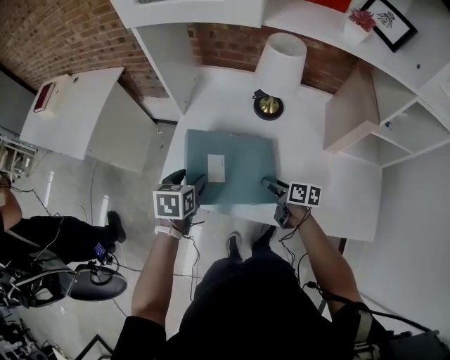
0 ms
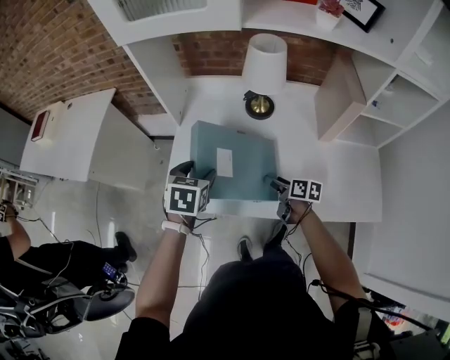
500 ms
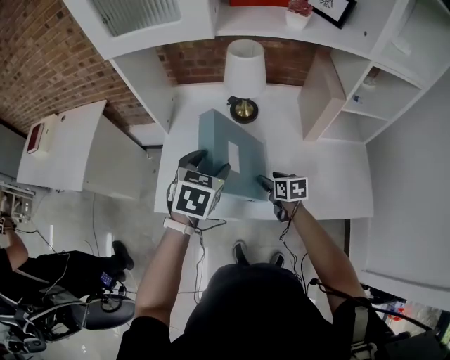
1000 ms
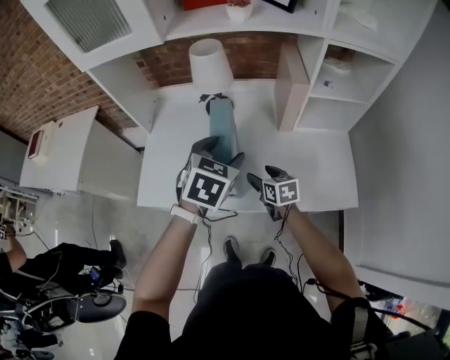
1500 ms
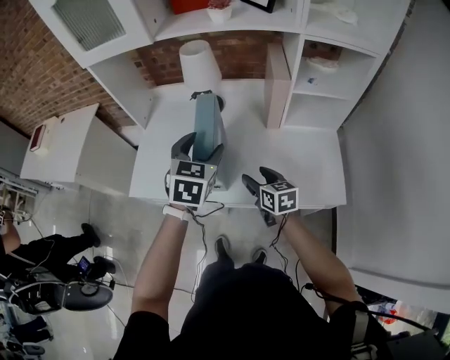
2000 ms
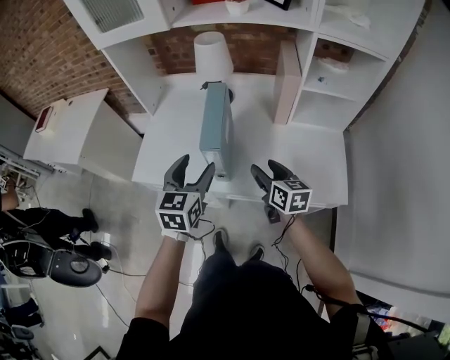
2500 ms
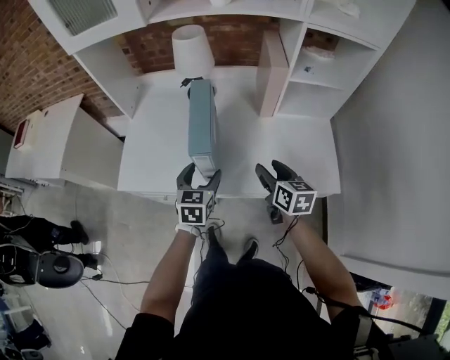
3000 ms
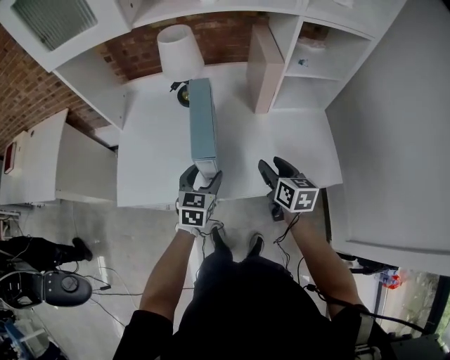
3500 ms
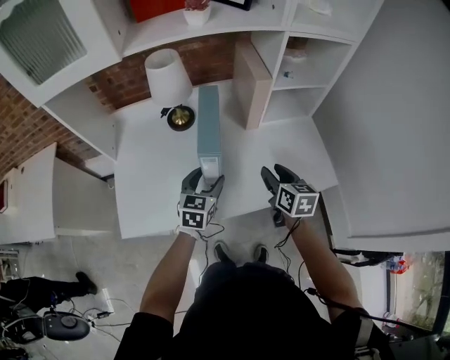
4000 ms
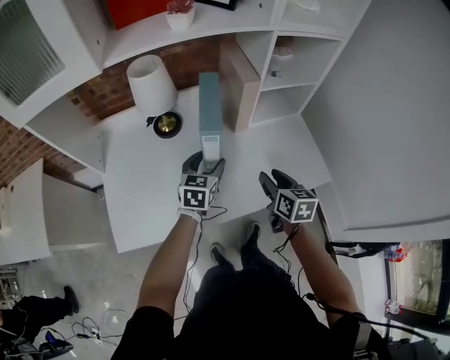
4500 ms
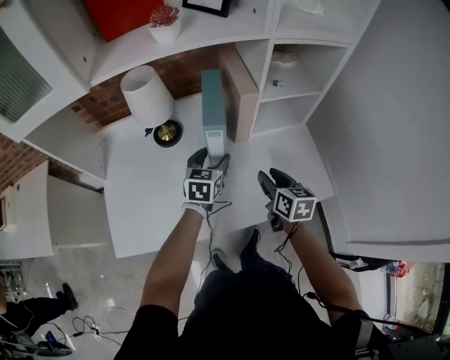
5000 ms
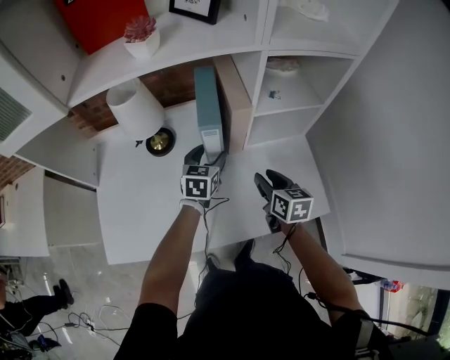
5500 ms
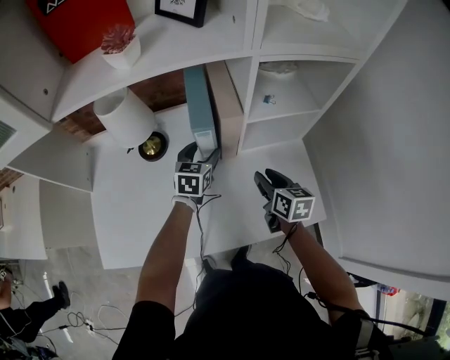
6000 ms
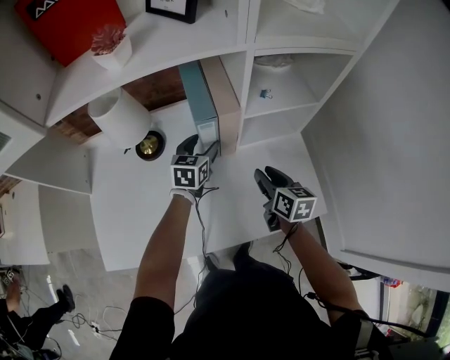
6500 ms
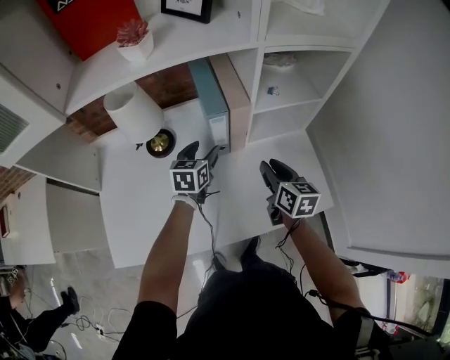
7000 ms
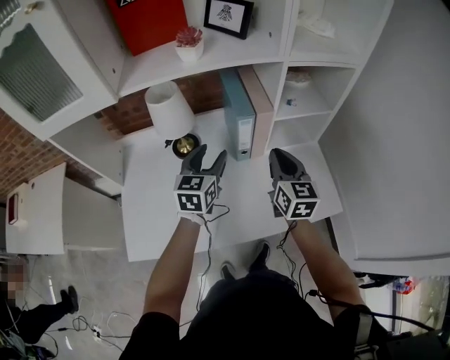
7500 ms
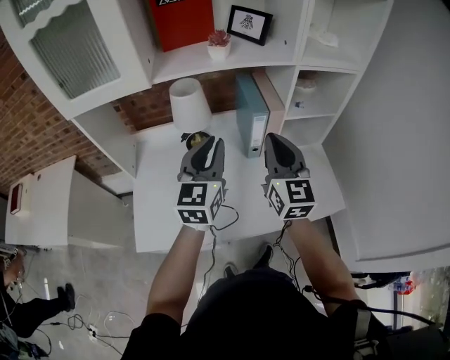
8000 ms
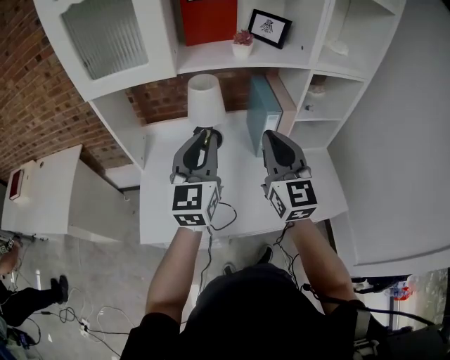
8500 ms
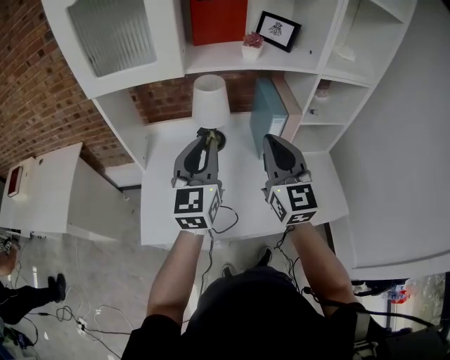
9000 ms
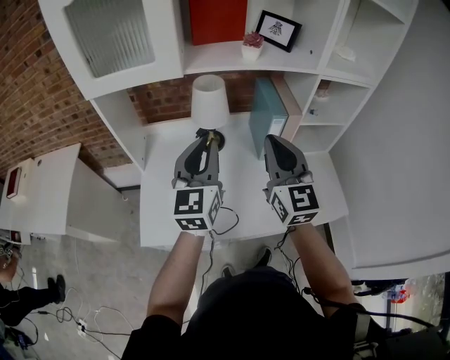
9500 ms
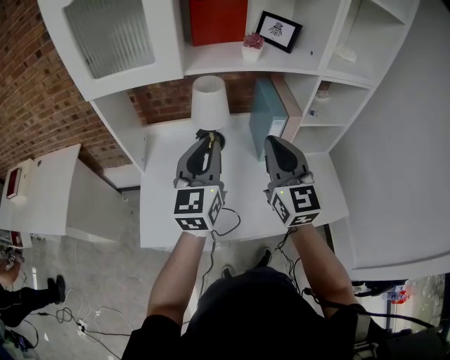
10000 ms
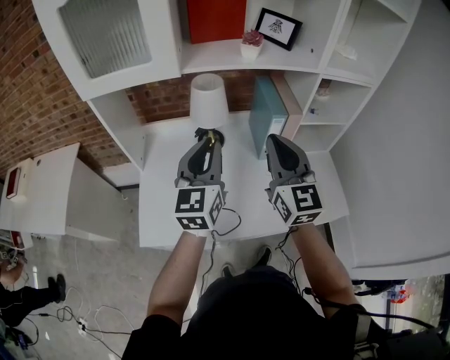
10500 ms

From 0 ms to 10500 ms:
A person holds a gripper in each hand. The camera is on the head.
From 0 ms to 2000 ms: The right gripper travels to the right, backward and upward by approximately 20 cm, and swivels about 30 degrees. The left gripper shifts approximately 35 cm to the right and upward, and turns by some 30 degrees.
From 2000 ms to 4000 ms: The right gripper ends up about 5 cm from where it was, and rotates some 30 degrees. The left gripper shifts approximately 15 cm downward, and rotates some 20 degrees.
From 4000 ms to 6500 ms: The right gripper moves forward and to the right, some 15 cm. The left gripper moves forward and to the right, approximately 30 cm.
From 6500 ms to 8500 ms: The left gripper is displaced upward, backward and to the left by approximately 40 cm, tips its fingers upward by some 30 degrees, and closes up. Meanwhile the right gripper shifts approximately 40 cm upward, to the left and backward, angles its fingers upward, by roughly 30 degrees, and closes up.
From 8500 ms to 10500 ms: The grippers stay close to where they were, moving slightly.

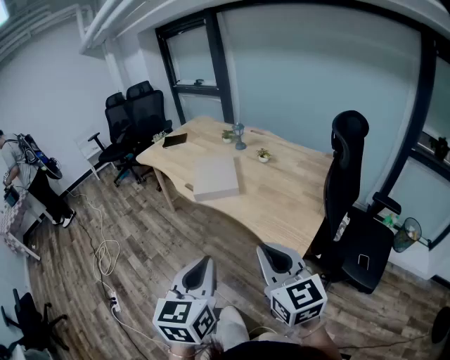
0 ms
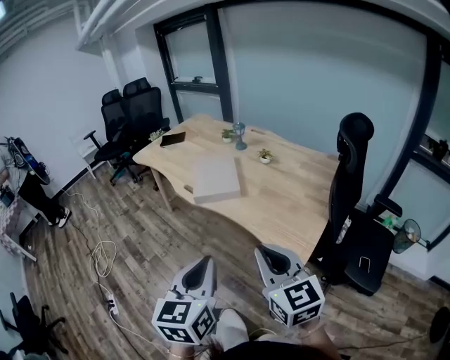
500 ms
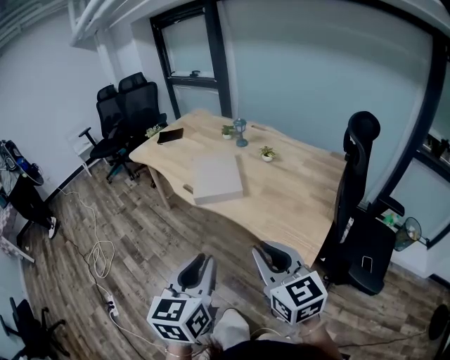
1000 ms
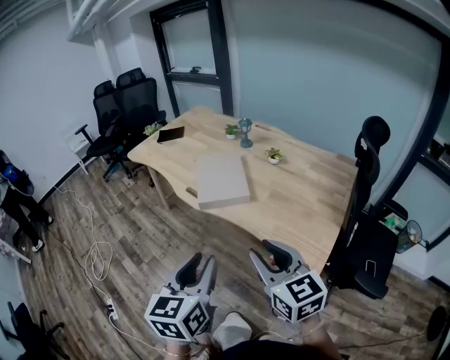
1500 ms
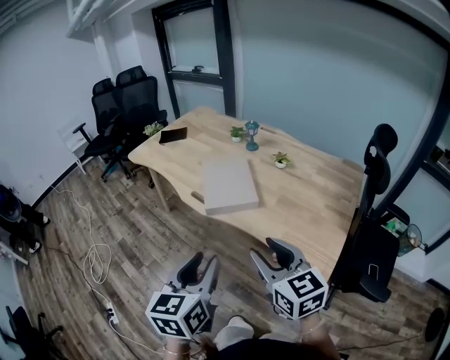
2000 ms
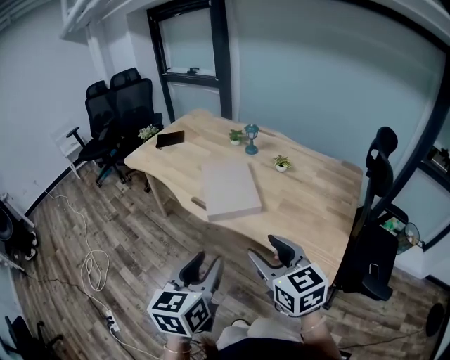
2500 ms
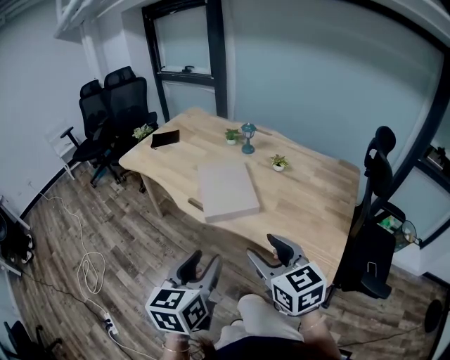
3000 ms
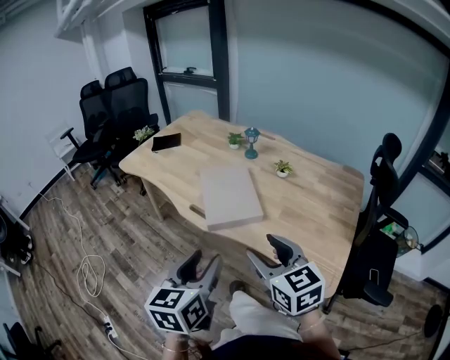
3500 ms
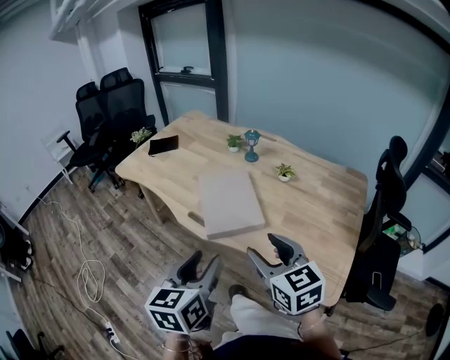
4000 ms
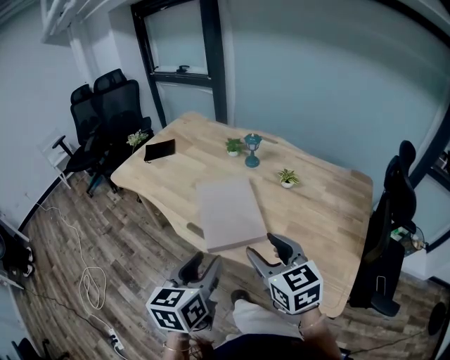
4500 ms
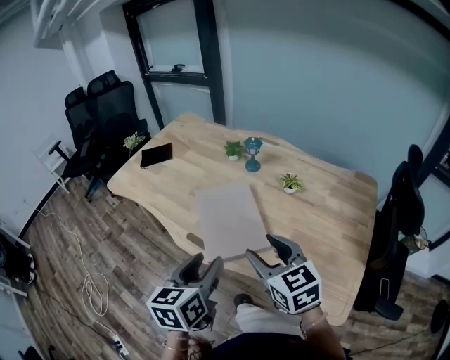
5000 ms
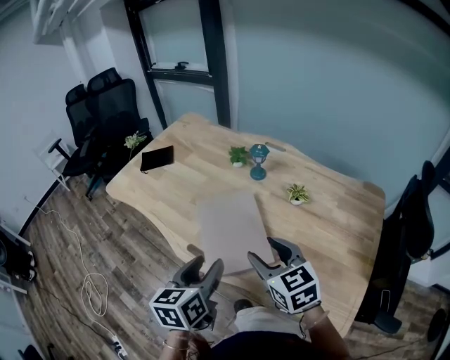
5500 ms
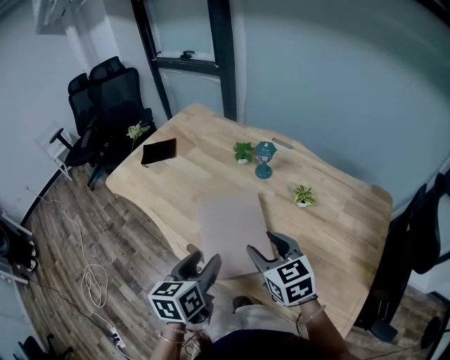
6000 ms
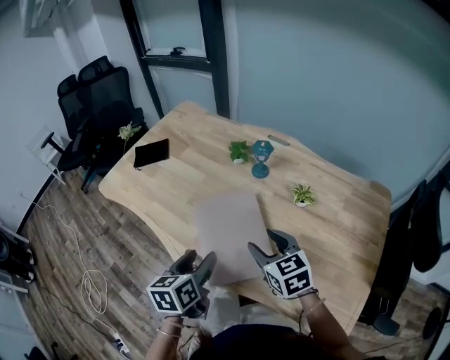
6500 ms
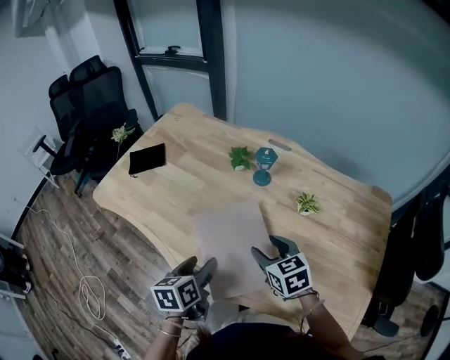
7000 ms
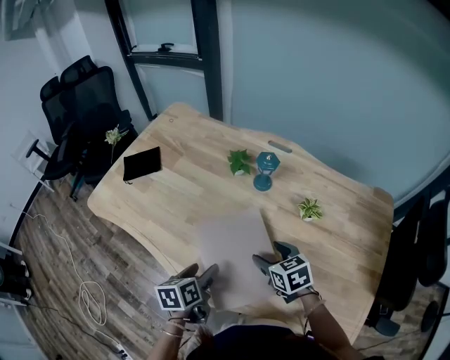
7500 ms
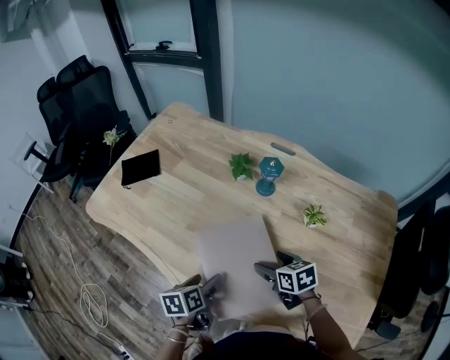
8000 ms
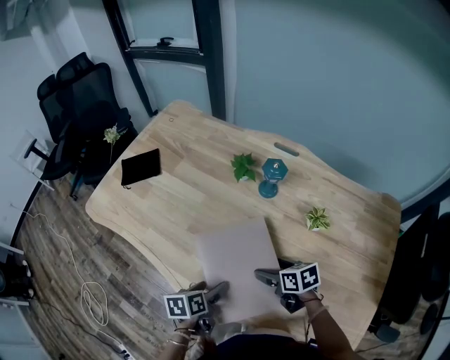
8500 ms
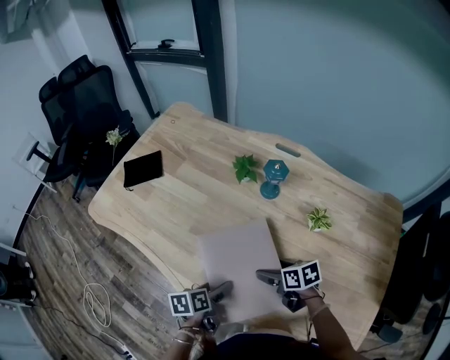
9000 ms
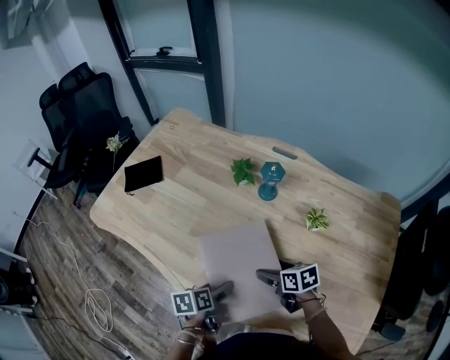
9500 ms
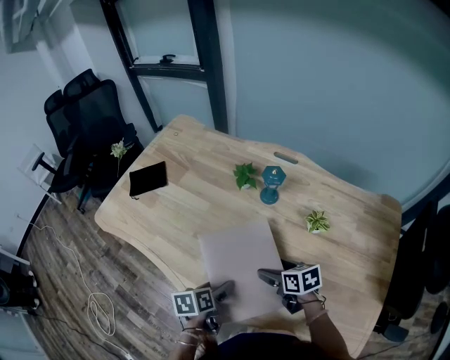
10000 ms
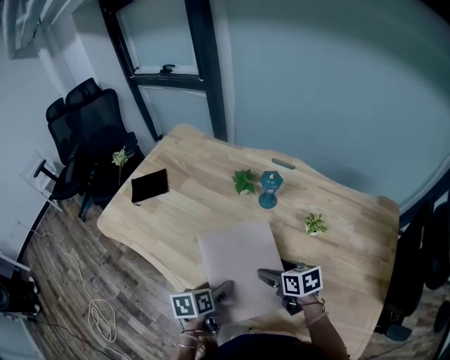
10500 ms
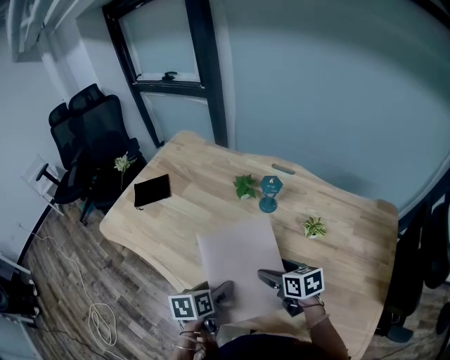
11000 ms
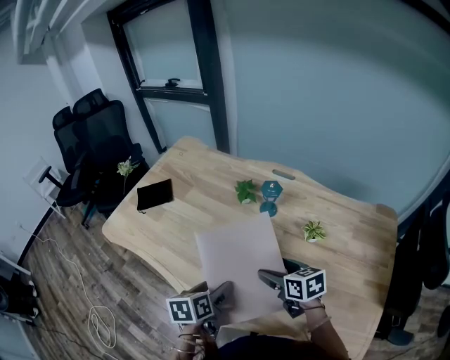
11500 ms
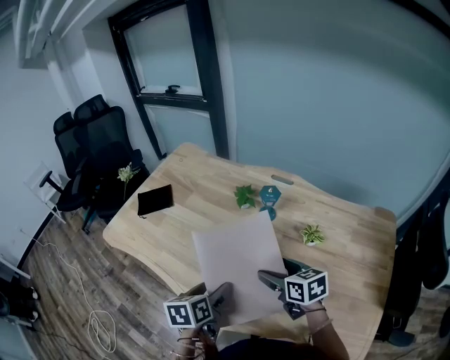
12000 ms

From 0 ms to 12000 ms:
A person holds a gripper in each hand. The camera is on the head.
From 0 ms to 2000 ms: The two grippers go approximately 20 cm forward and to the left. The right gripper opens up; the left gripper opens its fingers.
From 2000 ms to 4000 ms: Both grippers move forward, about 15 cm.
From 4000 ms to 6000 ms: Both grippers travel together forward, about 25 cm.
From 6000 ms to 8000 ms: The grippers both shift downward and forward by about 20 cm. The right gripper rotates about 30 degrees; the left gripper swivels about 30 degrees.
From 8000 ms to 10000 ms: There are only small adjustments of the grippers.
From 10000 ms to 12000 ms: The two grippers go some 10 cm upward.

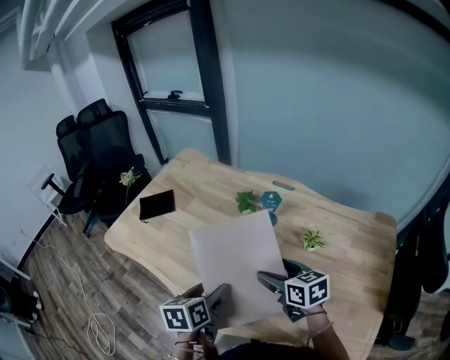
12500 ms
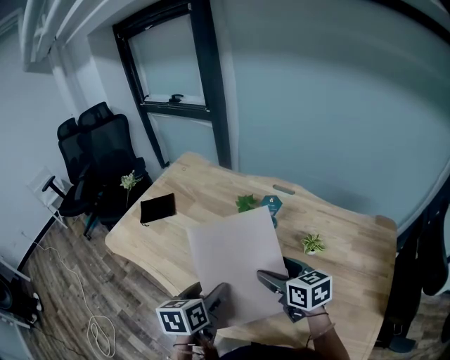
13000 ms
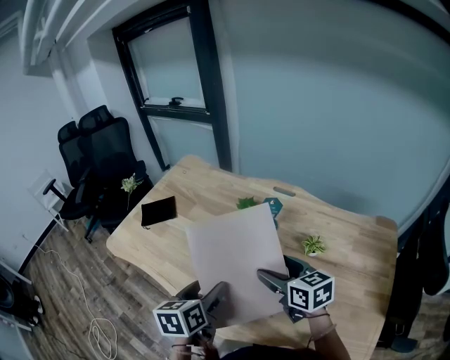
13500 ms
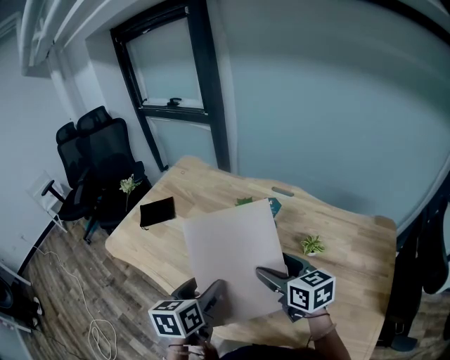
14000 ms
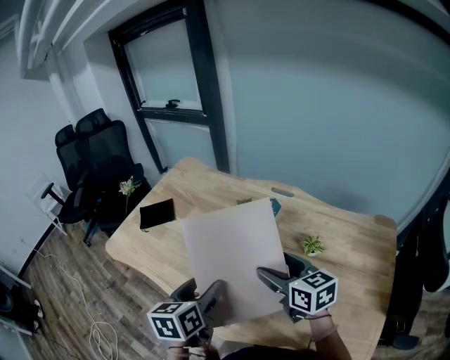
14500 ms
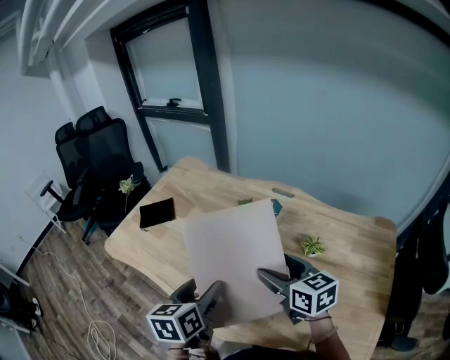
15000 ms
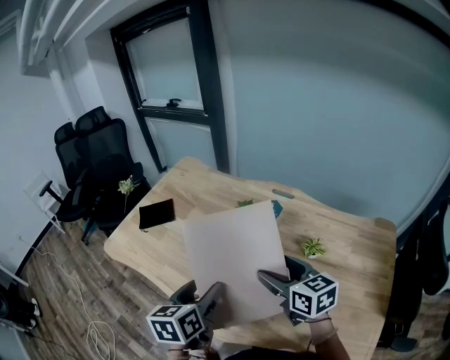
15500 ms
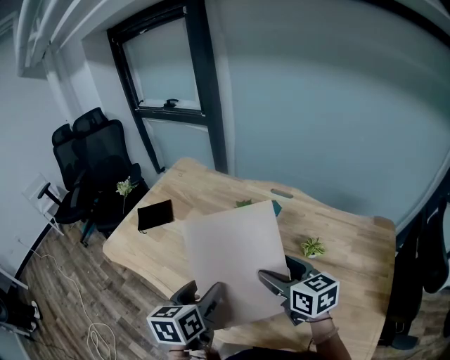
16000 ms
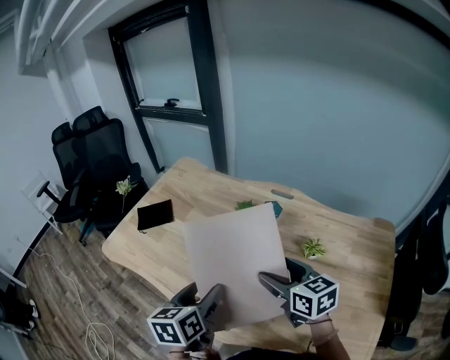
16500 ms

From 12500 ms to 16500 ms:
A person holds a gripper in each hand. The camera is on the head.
From 12500 ms to 14500 ms: Both grippers move upward, approximately 5 cm.
From 14500 ms to 16500 ms: Both grippers stay about where they are.
